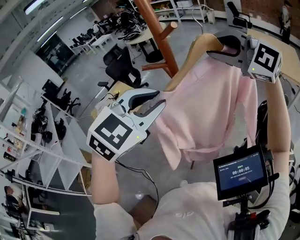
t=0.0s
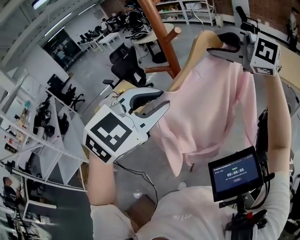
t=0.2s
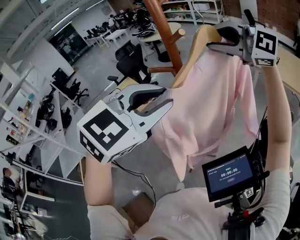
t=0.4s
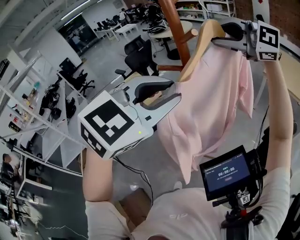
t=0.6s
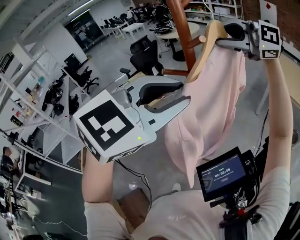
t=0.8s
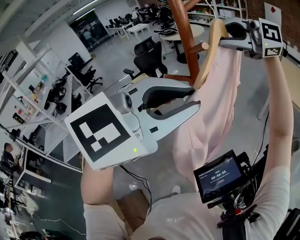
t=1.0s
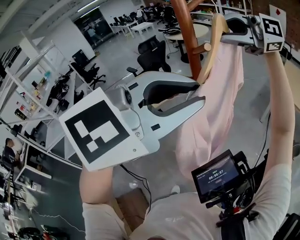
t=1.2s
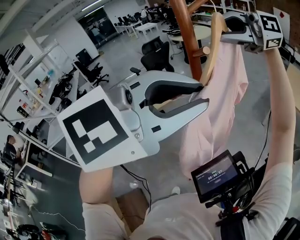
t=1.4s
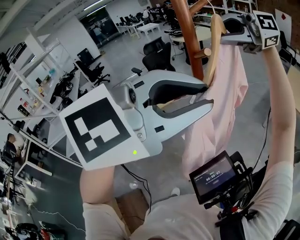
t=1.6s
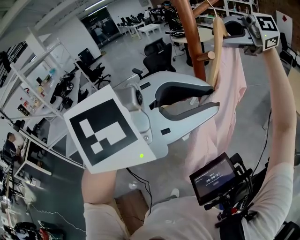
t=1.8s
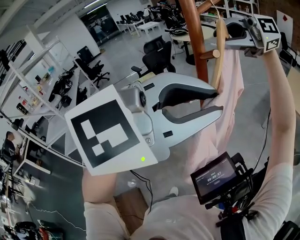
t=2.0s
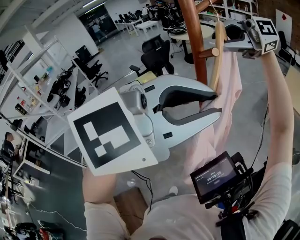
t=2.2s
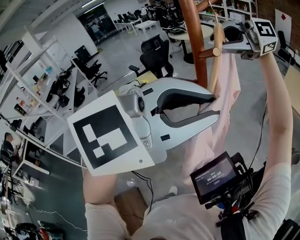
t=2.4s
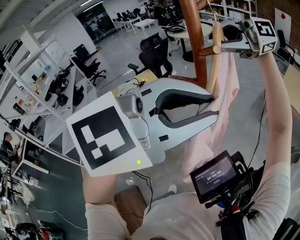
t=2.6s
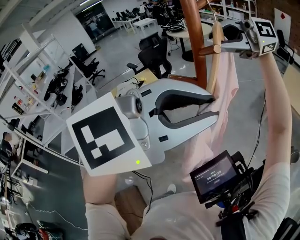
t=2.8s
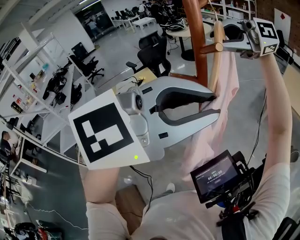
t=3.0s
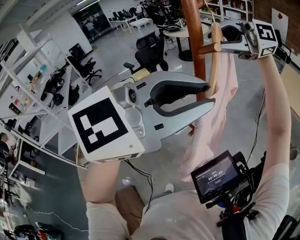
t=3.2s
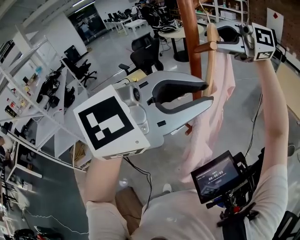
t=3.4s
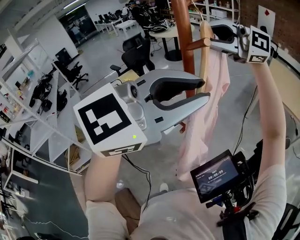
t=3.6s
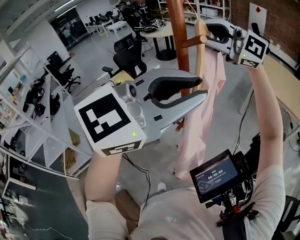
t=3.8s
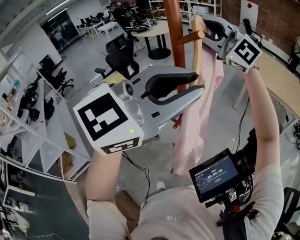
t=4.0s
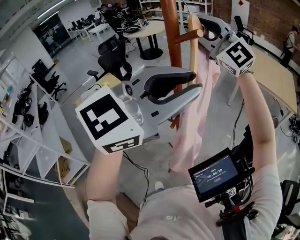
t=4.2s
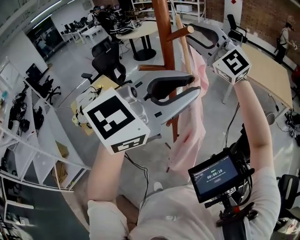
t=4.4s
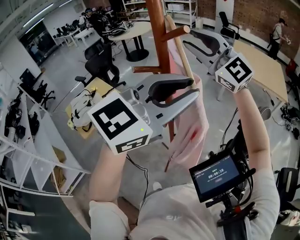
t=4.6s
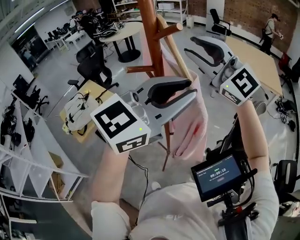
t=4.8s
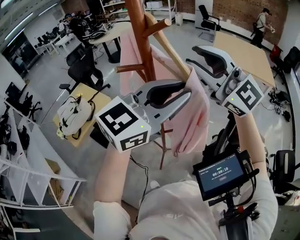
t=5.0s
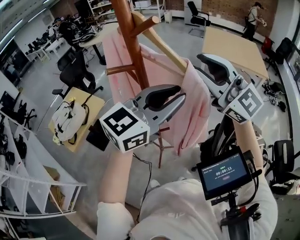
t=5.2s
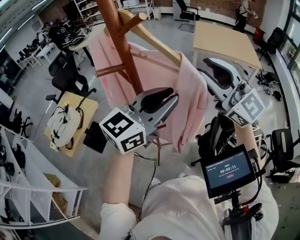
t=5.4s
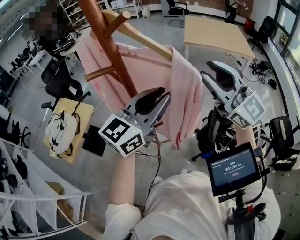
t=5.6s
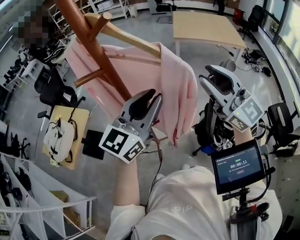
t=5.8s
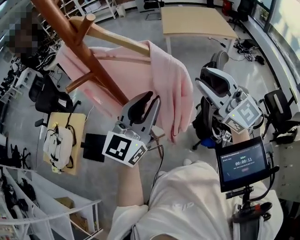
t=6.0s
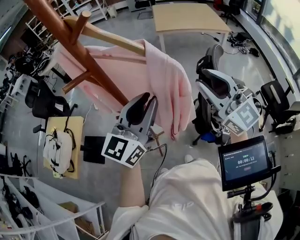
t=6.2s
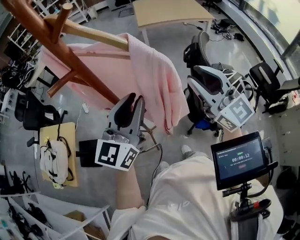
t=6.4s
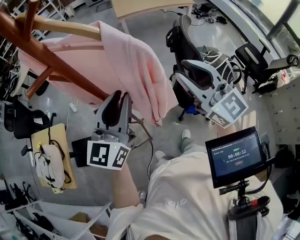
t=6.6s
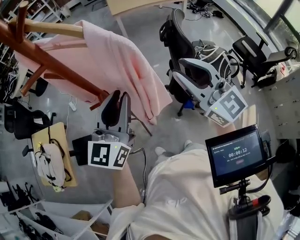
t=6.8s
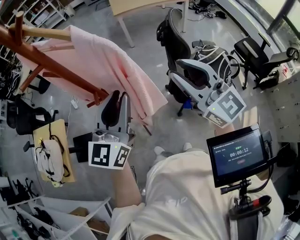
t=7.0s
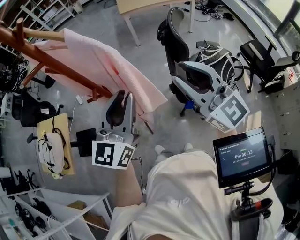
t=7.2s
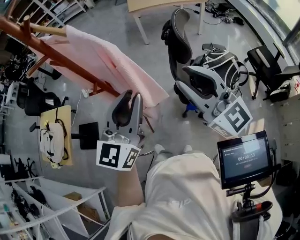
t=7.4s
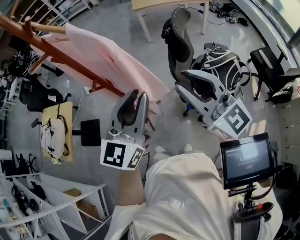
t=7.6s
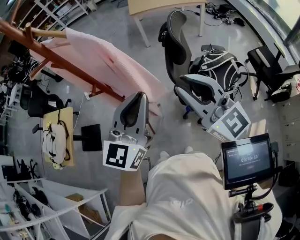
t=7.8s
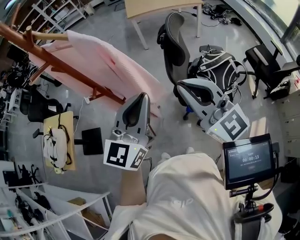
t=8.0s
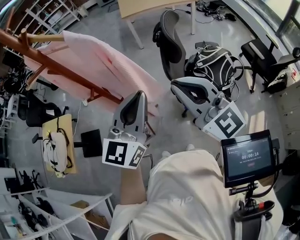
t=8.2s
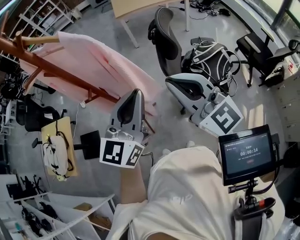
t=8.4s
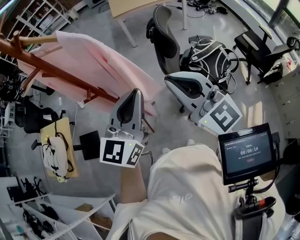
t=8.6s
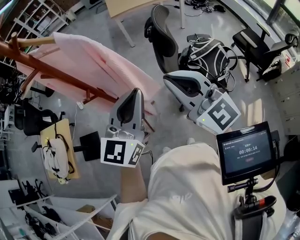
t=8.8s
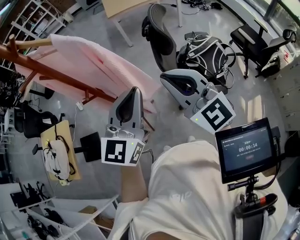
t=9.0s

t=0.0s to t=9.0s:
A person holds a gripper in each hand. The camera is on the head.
t=0.0s to t=1.6s: The right gripper shifts by approximately 10 cm, and swivels approximately 50 degrees. Meanwhile the left gripper heads upward, covering roughly 10 cm.
t=1.6s to t=3.0s: The grippers make only small movements.
t=3.0s to t=4.4s: The right gripper swivels approximately 70 degrees.
t=4.4s to t=6.0s: The left gripper heads downward, covering roughly 15 cm, while the right gripper heads to the right, downward and backward, covering about 30 cm, and changes its angle by roughly 40 degrees.
t=6.0s to t=7.6s: The two grippers go about 20 cm backward and to the right.
t=7.6s to t=9.0s: The right gripper closes.

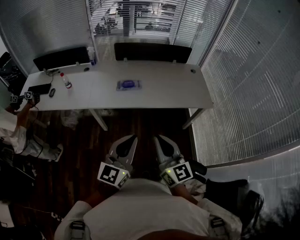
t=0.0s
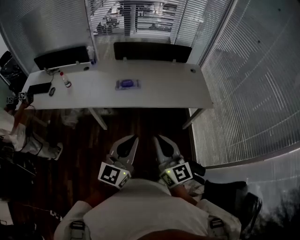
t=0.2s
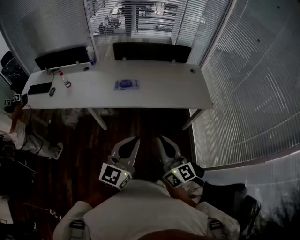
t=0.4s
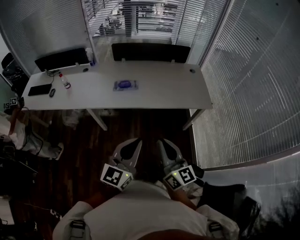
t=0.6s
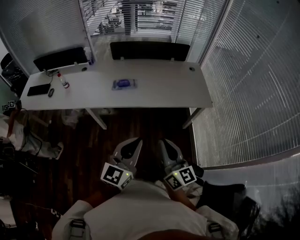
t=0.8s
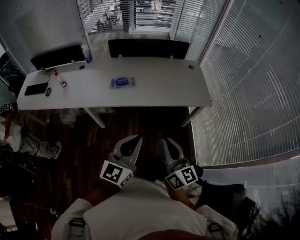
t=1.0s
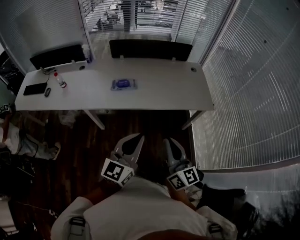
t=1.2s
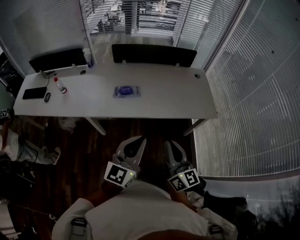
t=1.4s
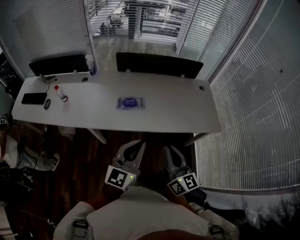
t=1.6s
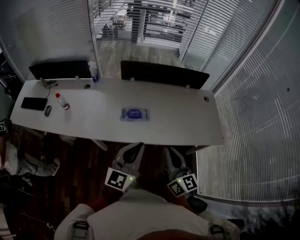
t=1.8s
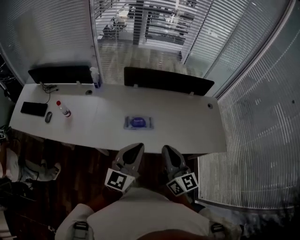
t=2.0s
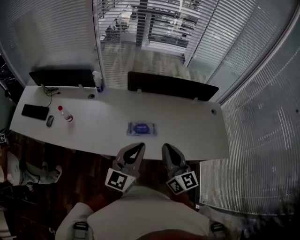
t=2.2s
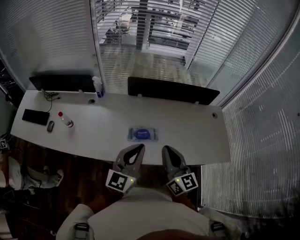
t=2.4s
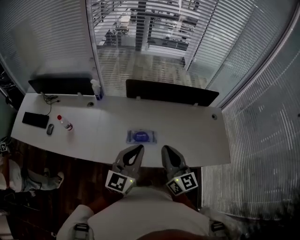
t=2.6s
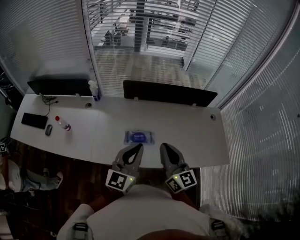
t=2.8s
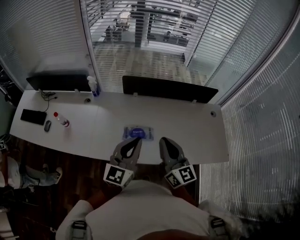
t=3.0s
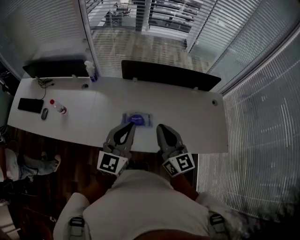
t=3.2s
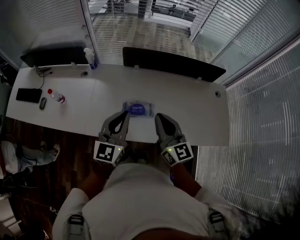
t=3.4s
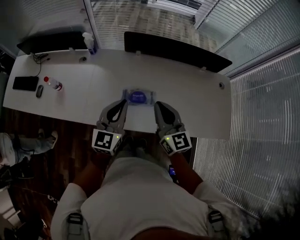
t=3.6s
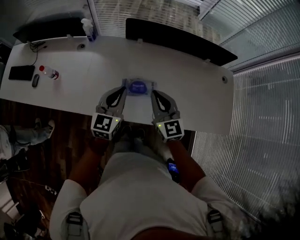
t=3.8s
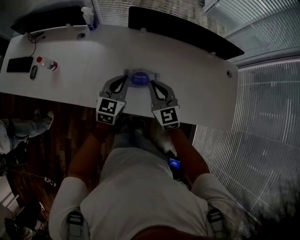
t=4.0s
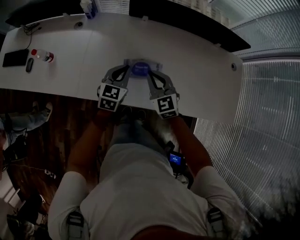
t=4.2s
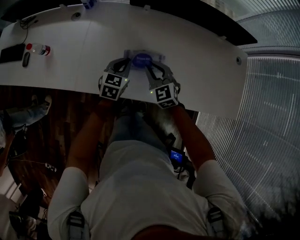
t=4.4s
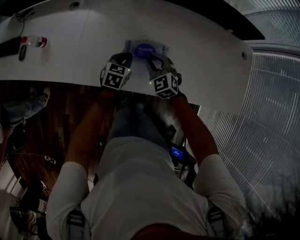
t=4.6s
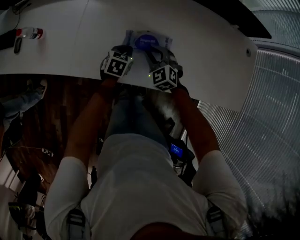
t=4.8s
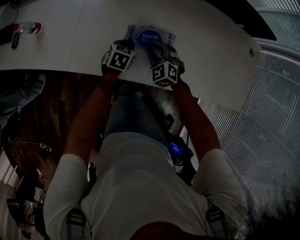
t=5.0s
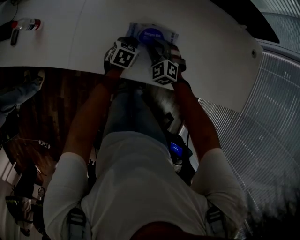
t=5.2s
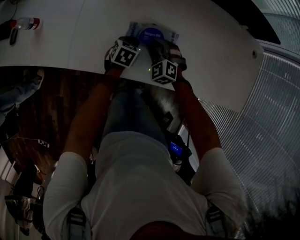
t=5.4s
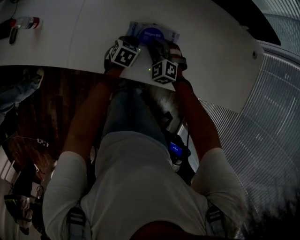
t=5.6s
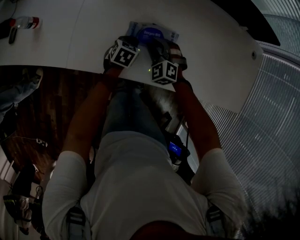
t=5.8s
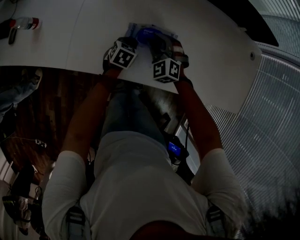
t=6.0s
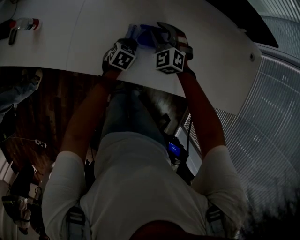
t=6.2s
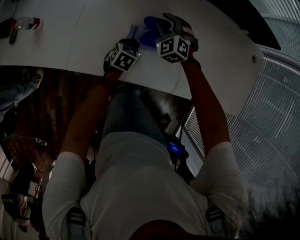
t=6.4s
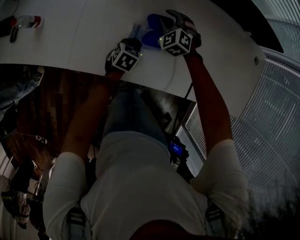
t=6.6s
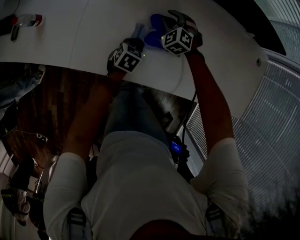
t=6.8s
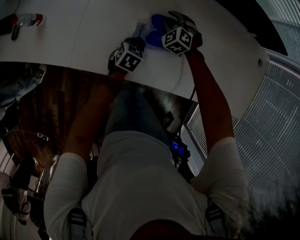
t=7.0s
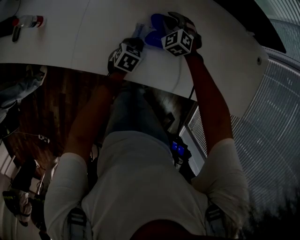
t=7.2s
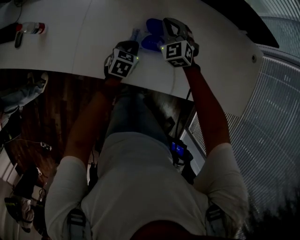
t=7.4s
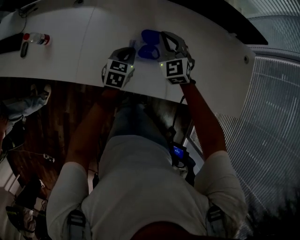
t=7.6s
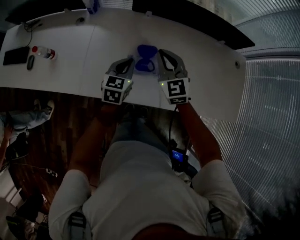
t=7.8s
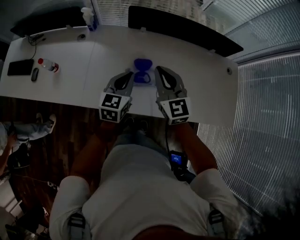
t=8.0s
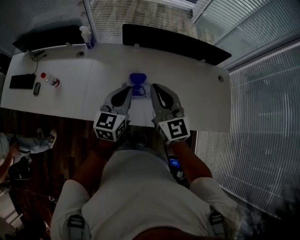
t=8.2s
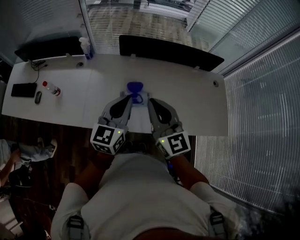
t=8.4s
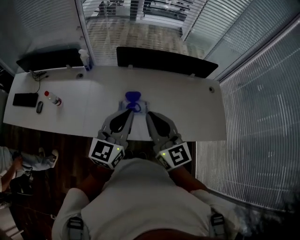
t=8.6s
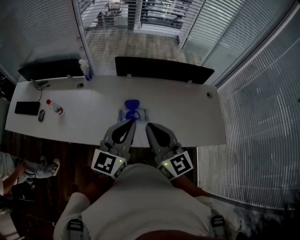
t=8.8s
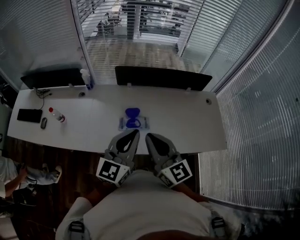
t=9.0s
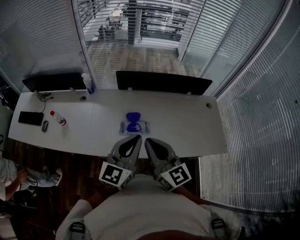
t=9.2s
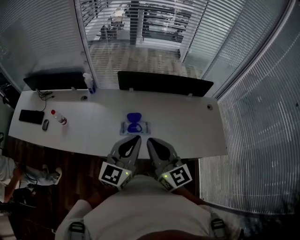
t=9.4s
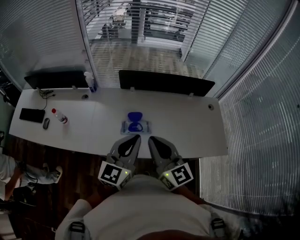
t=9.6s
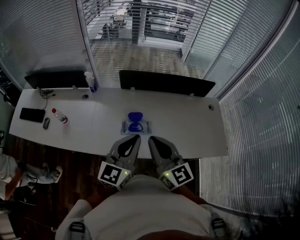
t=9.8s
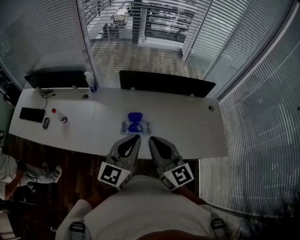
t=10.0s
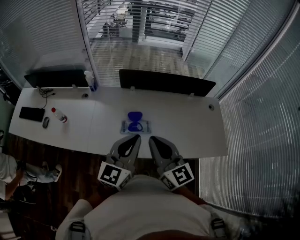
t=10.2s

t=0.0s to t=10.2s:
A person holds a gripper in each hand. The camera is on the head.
t=0.0s to t=1.4s: The right gripper heads forward and to the right, covering some 10 cm. The left gripper heads forward, covering approximately 10 cm.
t=1.4s to t=3.0s: Both grippers travel together forward and to the left, approximately 35 cm.
t=3.0s to t=4.4s: Both grippers move downward, about 30 cm. The left gripper tilts its fingers roughly 40 degrees downward. The right gripper tips its fingers downward by roughly 40 degrees.
t=4.4s to t=5.8s: The two grippers go about 15 cm downward. The left gripper rotates some 20 degrees. The right gripper rotates approximately 30 degrees.
t=5.8s to t=7.2s: The right gripper is displaced forward by roughly 15 cm.
t=7.2s to t=8.8s: The left gripper goes some 50 cm upward, and tilts its fingers about 50 degrees upward, while the right gripper goes some 50 cm upward and backward, tilts its fingers some 50 degrees upward, and closes.
t=8.8s to t=10.2s: The grippers stay close to where they were, moving slightly.

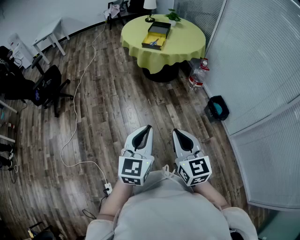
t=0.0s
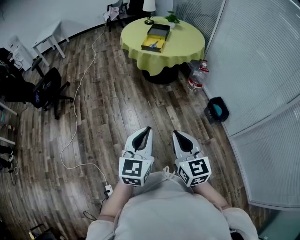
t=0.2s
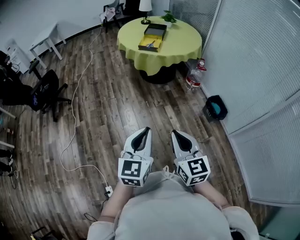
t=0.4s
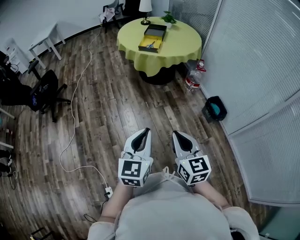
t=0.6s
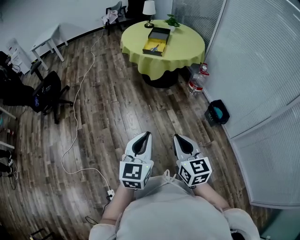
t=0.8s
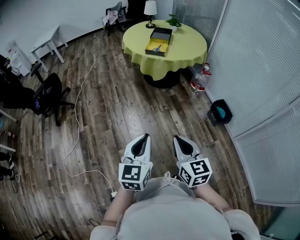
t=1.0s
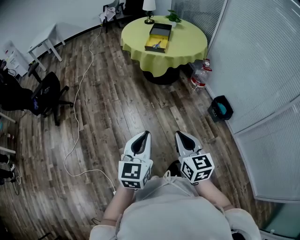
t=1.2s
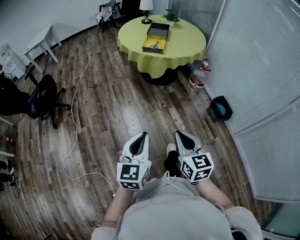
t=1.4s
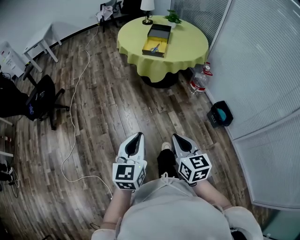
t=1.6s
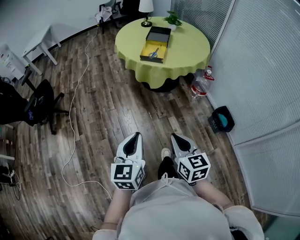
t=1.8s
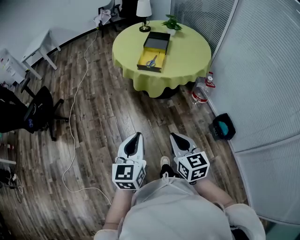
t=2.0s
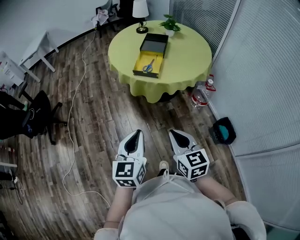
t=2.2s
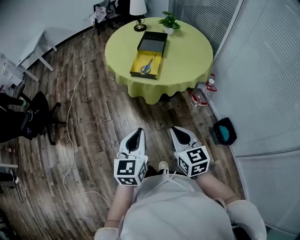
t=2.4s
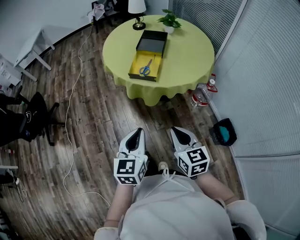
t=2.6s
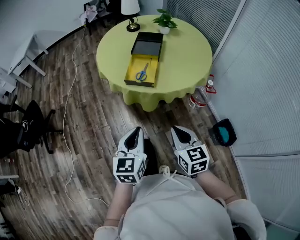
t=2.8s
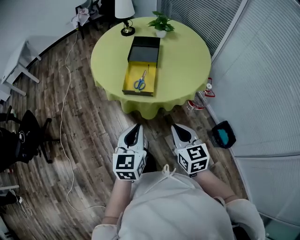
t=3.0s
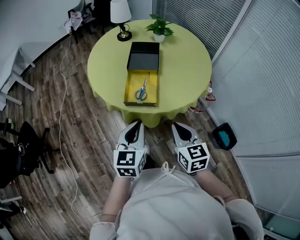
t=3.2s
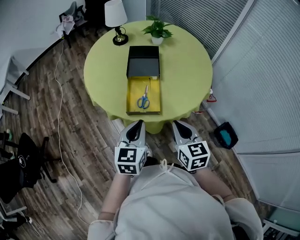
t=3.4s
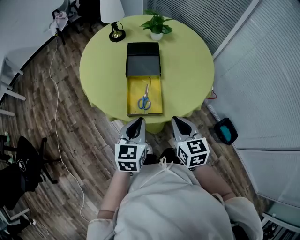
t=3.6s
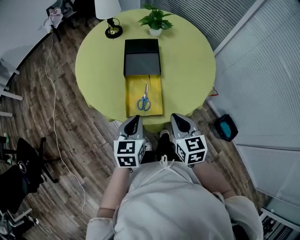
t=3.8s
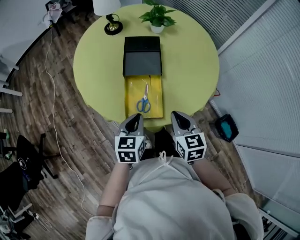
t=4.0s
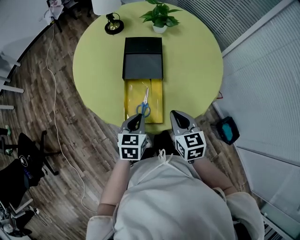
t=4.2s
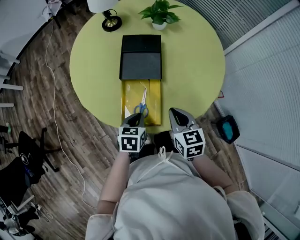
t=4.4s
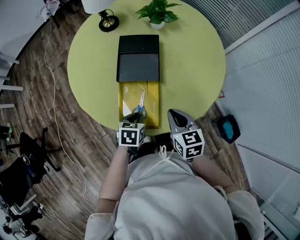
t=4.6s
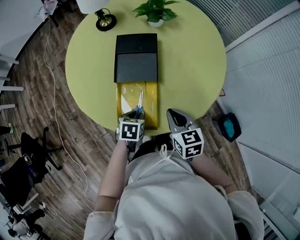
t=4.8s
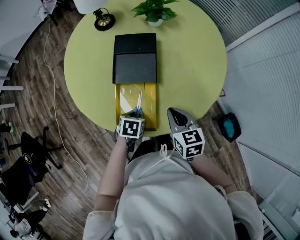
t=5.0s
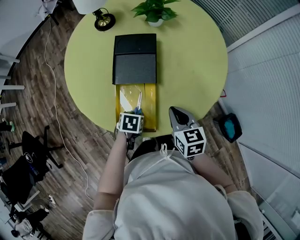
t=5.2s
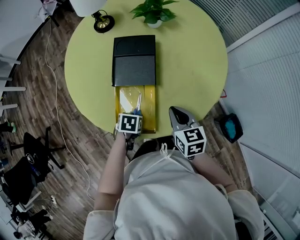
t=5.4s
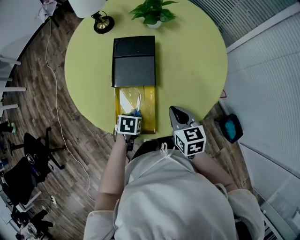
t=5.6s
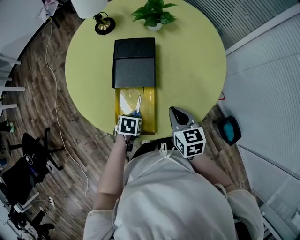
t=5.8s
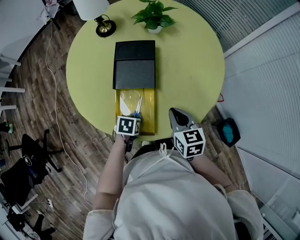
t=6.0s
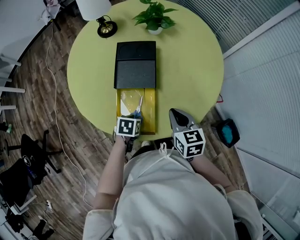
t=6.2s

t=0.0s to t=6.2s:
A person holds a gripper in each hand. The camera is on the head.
t=0.0s to t=1.6s: The right gripper heads forward, downward and to the left, covering about 15 cm; the left gripper moves forward and to the left, approximately 15 cm.
t=1.6s to t=3.2s: Both grippers are carried forward, roughly 60 cm.
t=3.2s to t=4.6s: The right gripper shifts approximately 25 cm forward. Meanwhile the left gripper moves forward and downward, about 35 cm, and points its fingers about 40 degrees further downward.
t=4.6s to t=6.2s: The grippers stay close to where they were, moving slightly.
